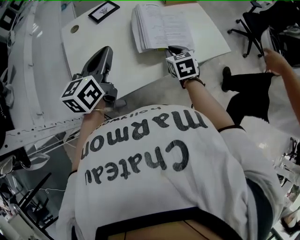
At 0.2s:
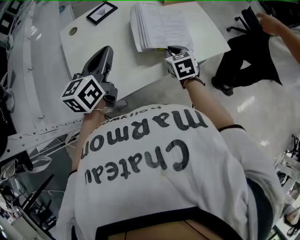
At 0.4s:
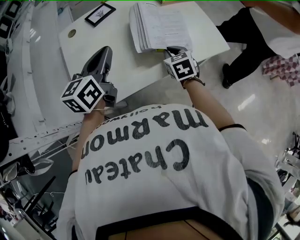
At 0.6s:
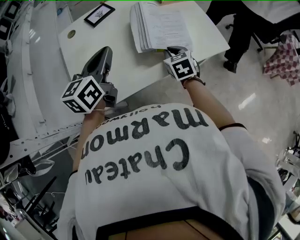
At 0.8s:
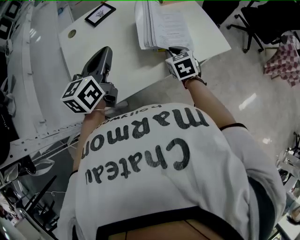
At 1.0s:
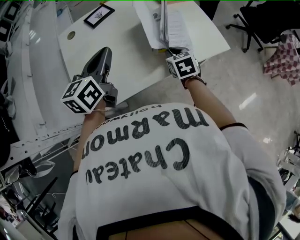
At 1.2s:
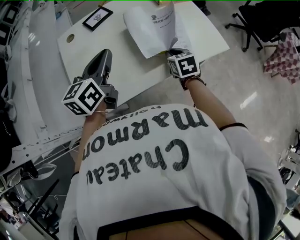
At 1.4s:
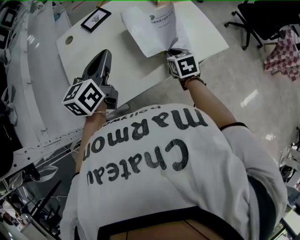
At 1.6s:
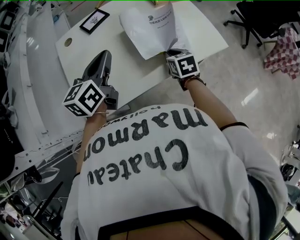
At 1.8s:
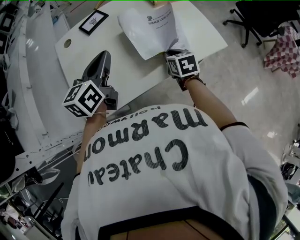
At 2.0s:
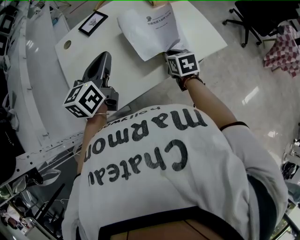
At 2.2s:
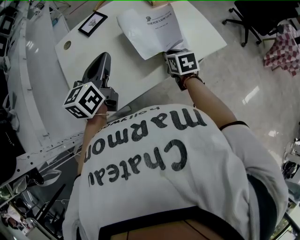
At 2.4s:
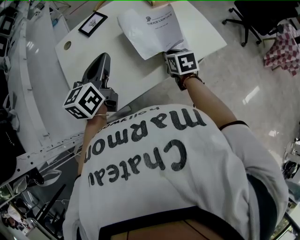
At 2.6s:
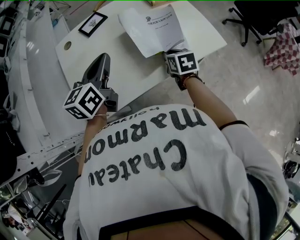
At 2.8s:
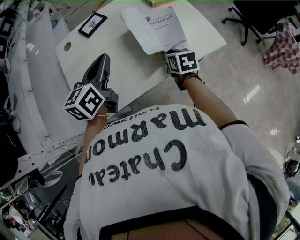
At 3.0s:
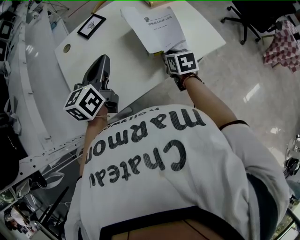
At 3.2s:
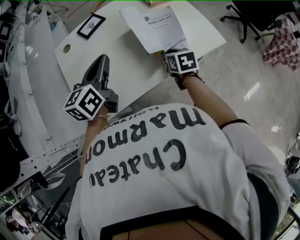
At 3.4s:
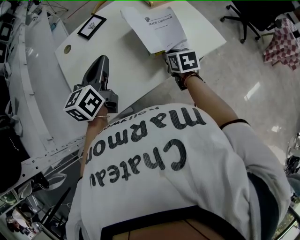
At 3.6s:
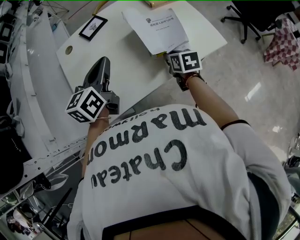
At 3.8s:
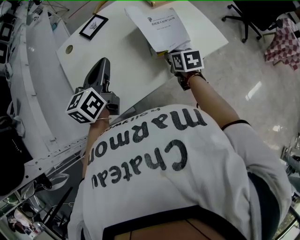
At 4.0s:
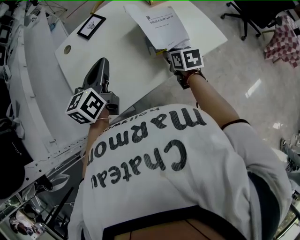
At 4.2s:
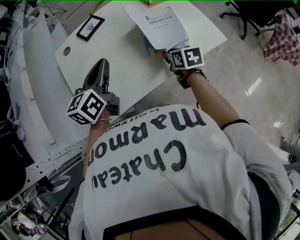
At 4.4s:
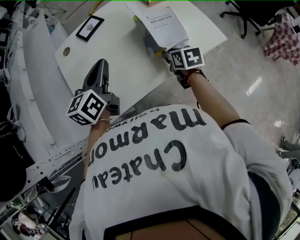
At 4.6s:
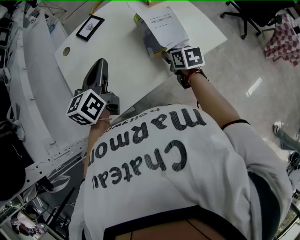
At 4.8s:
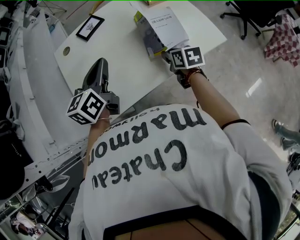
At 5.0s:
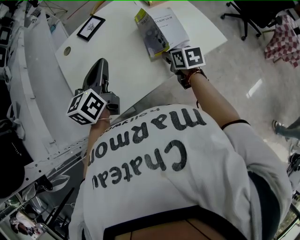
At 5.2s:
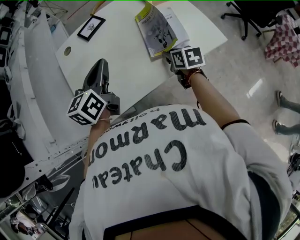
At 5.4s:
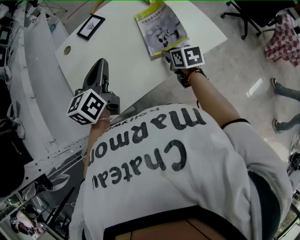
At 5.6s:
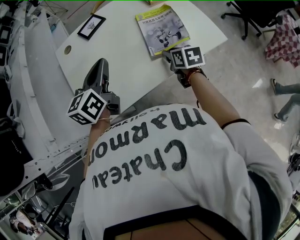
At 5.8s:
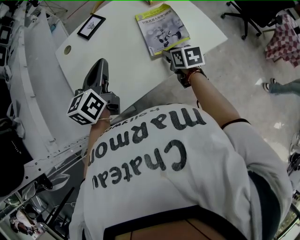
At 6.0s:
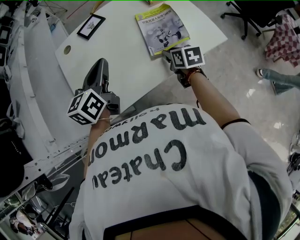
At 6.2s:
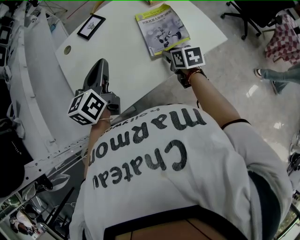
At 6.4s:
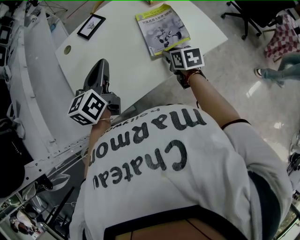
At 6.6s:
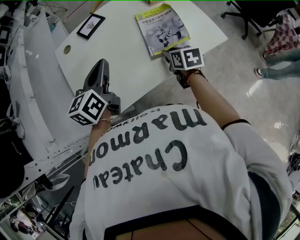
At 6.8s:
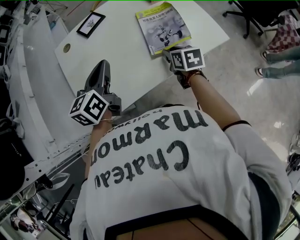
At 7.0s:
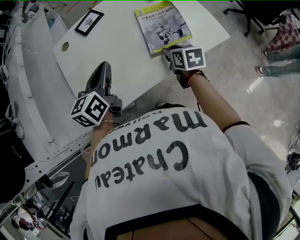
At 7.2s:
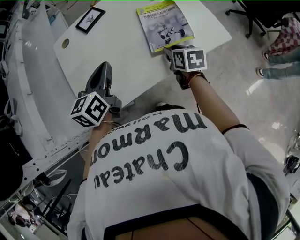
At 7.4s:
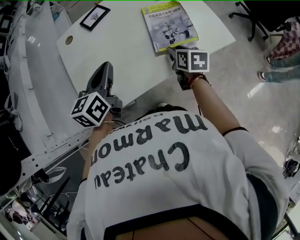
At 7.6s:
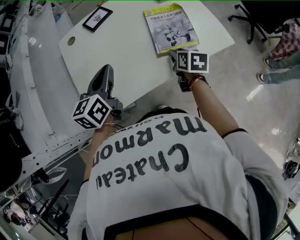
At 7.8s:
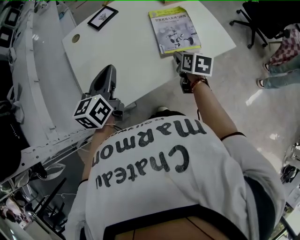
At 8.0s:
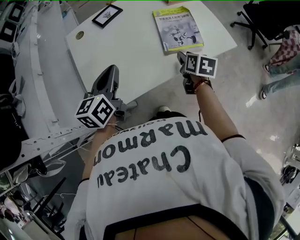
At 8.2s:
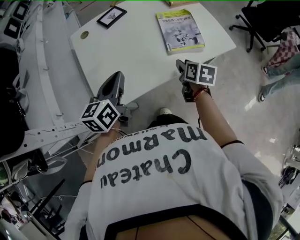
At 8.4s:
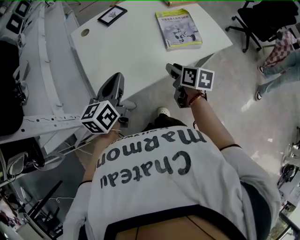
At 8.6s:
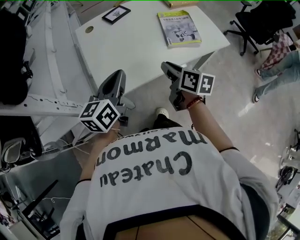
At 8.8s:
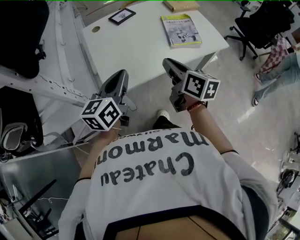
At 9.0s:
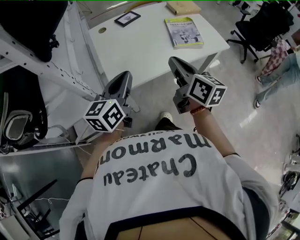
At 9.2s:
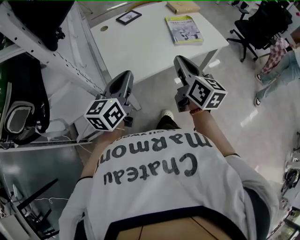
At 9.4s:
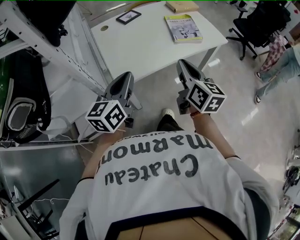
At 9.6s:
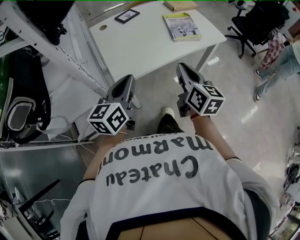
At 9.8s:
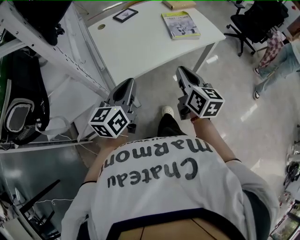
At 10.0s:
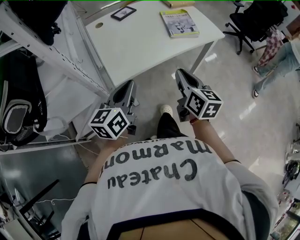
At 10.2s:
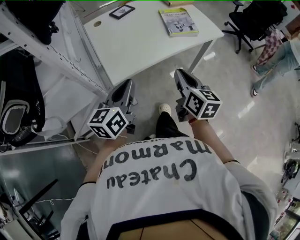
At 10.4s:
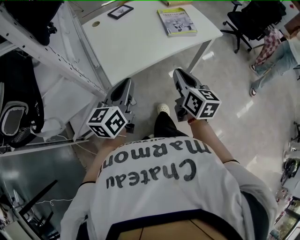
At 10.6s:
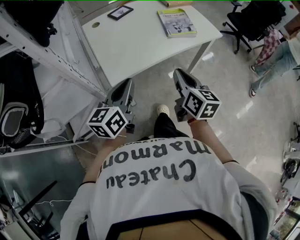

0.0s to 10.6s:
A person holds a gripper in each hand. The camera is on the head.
0.0s to 1.6s: The grippers stay close to where they were, moving slightly.
1.6s to 4.6s: The grippers move only a little.
4.6s to 6.0s: Neither gripper changes place.
6.0s to 7.6s: There are only small adjustments of the grippers.
7.6s to 9.0s: The left gripper moves backward, some 20 cm, while the right gripper is displaced backward, upward and to the left by about 35 cm, tilts its fingers some 40 degrees upward, and closes up.
9.0s to 10.6s: The right gripper travels backward and downward by approximately 10 cm, while the left gripper travels backward by about 5 cm.

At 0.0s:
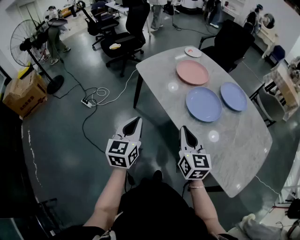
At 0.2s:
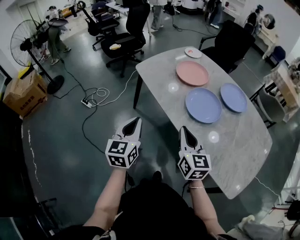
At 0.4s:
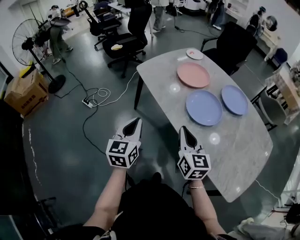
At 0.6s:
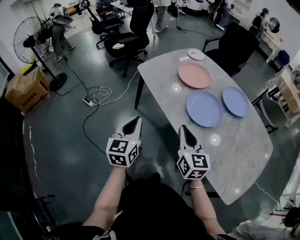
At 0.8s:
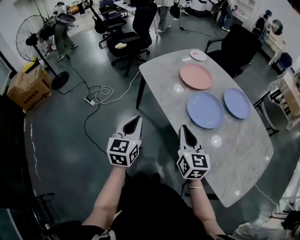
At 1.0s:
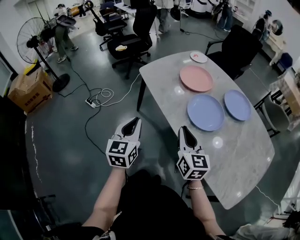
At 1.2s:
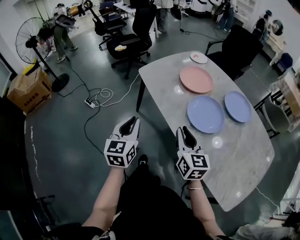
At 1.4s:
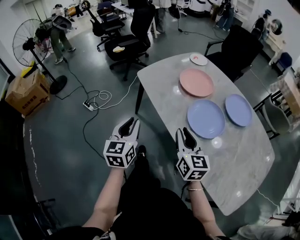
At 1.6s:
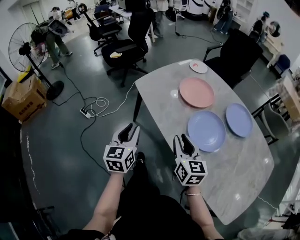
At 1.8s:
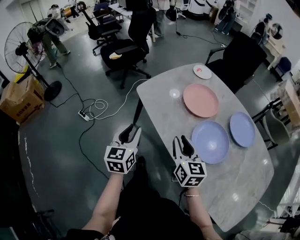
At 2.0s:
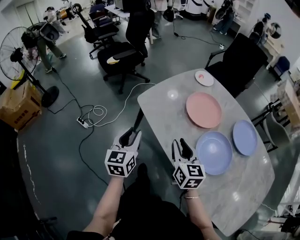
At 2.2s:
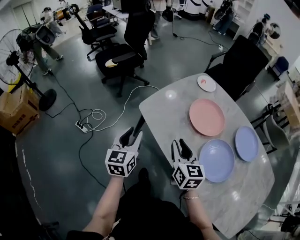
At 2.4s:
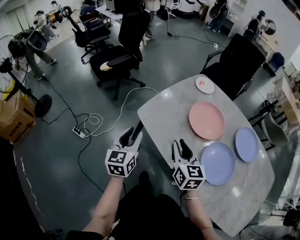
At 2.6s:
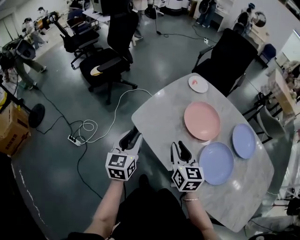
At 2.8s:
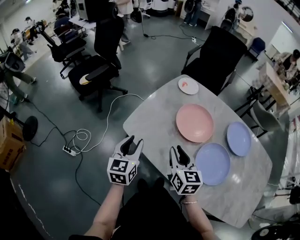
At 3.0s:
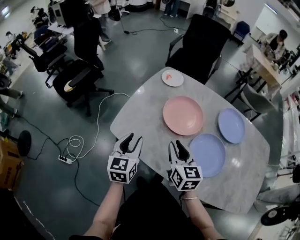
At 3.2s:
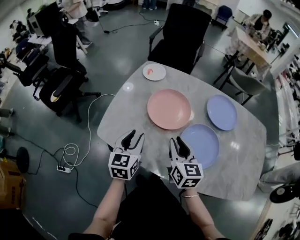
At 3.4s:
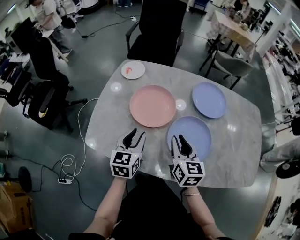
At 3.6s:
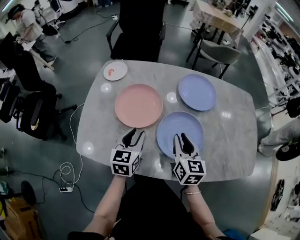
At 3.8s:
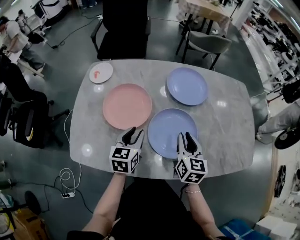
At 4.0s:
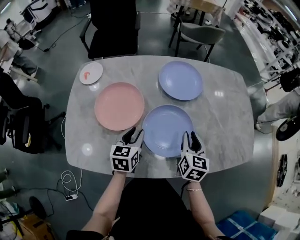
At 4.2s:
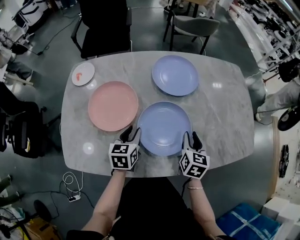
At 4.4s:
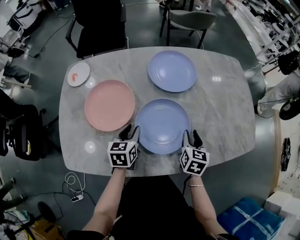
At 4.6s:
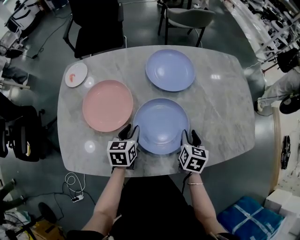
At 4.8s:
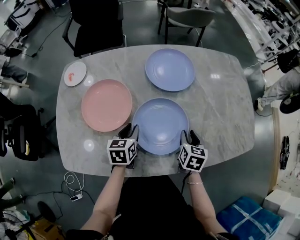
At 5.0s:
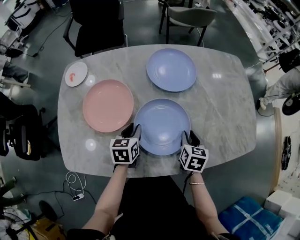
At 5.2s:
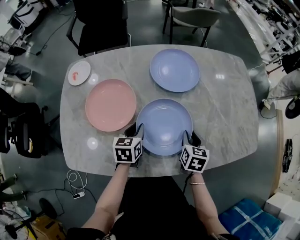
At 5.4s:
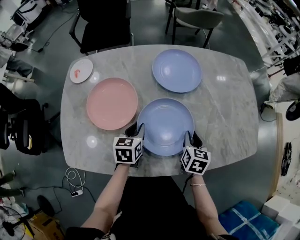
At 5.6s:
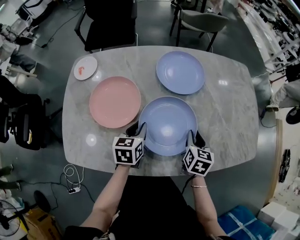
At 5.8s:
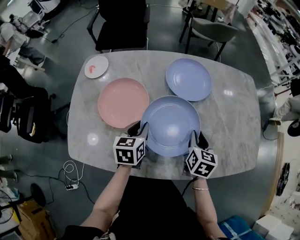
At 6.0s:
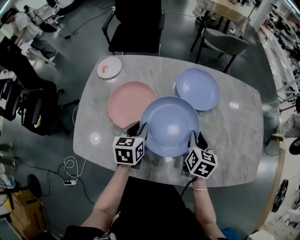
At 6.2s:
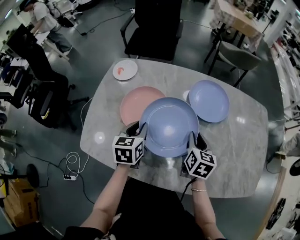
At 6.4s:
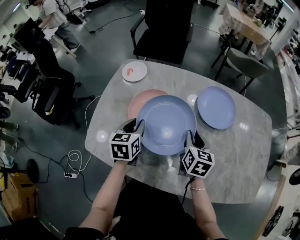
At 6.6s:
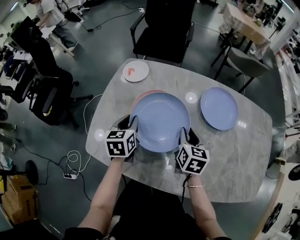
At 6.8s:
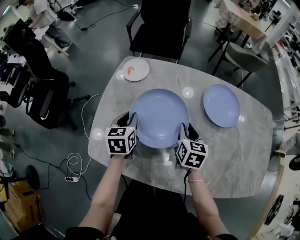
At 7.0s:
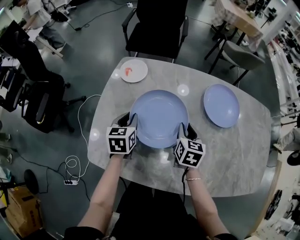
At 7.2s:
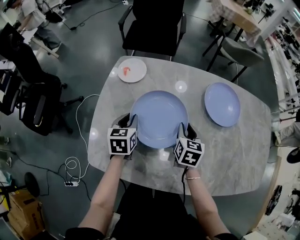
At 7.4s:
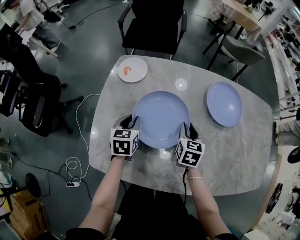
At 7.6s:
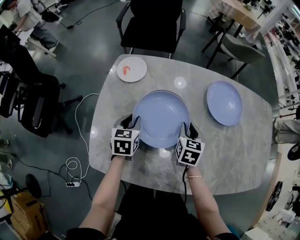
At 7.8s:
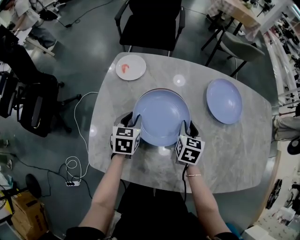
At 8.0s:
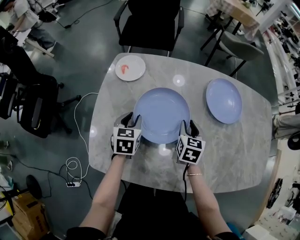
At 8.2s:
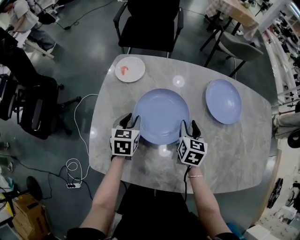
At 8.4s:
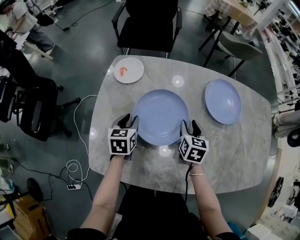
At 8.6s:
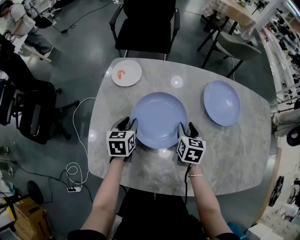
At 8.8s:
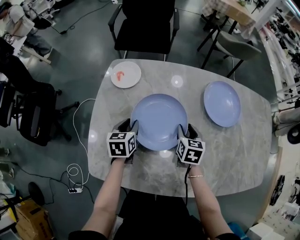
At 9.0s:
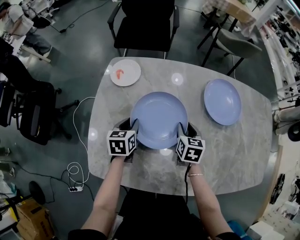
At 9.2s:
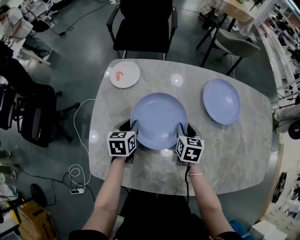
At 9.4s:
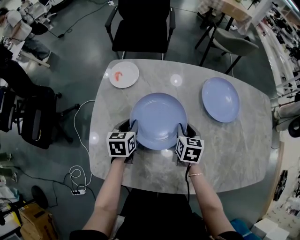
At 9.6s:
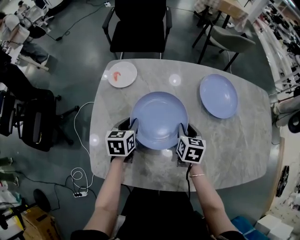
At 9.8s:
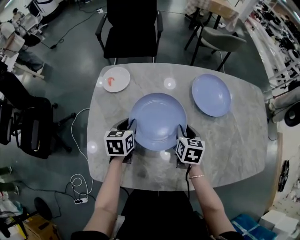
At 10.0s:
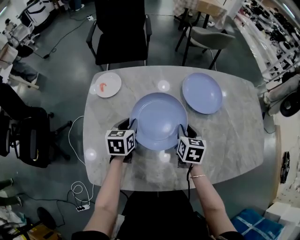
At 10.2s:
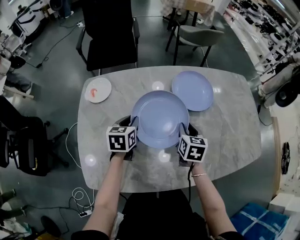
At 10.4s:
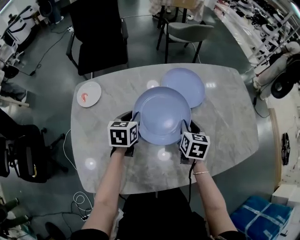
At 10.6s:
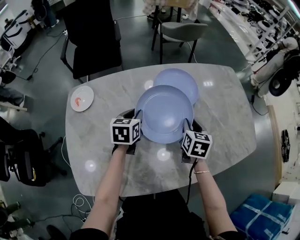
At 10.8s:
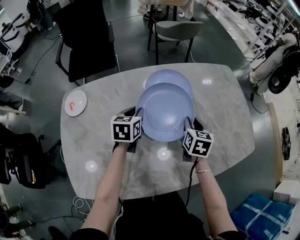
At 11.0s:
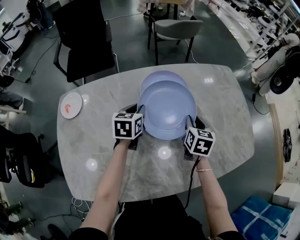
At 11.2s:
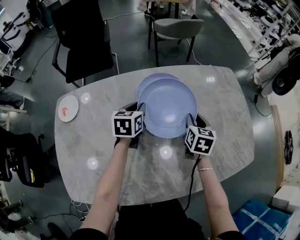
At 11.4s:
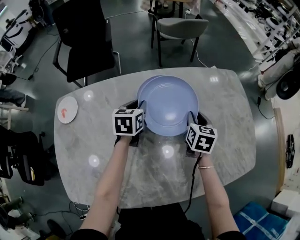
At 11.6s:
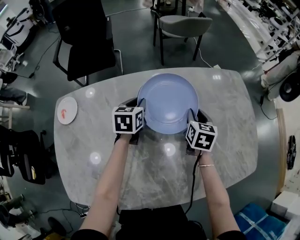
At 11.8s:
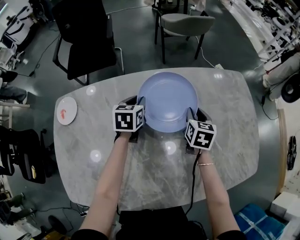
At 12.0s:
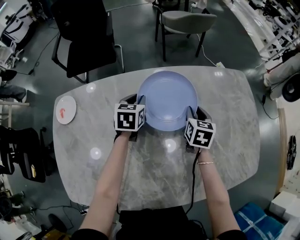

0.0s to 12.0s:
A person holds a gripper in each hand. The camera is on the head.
0.0s to 1.6s: Both grippers move forward, roughly 15 cm. The left gripper opens.
1.6s to 3.0s: Both grippers travel together forward, approximately 25 cm. The right gripper changes its angle by some 20 degrees. The left gripper rotates some 30 degrees.
3.0s to 4.4s: The left gripper moves roughly 30 cm, and turns by roughly 40 degrees. The right gripper changes place by some 35 cm, and rotates roughly 60 degrees.
4.4s to 6.0s: The right gripper moves to the left and forward, about 10 cm. Meanwhile the left gripper is displaced upward by approximately 5 cm.
6.0s to 7.6s: The right gripper goes about 20 cm to the left and forward. Meanwhile the left gripper goes about 20 cm to the left.
7.6s to 9.0s: The grippers move only a little.
9.0s to 10.4s: The left gripper shifts approximately 20 cm to the right, forward and upward, and turns by about 20 degrees, while the right gripper heads to the right and upward, covering roughly 15 cm.
10.4s to 12.0s: The grippers both shift forward and to the right by roughly 20 cm.

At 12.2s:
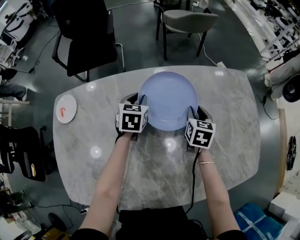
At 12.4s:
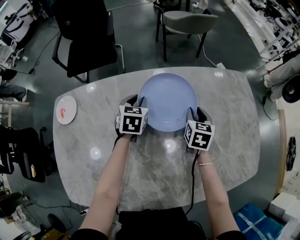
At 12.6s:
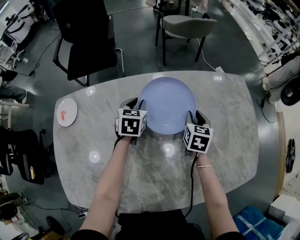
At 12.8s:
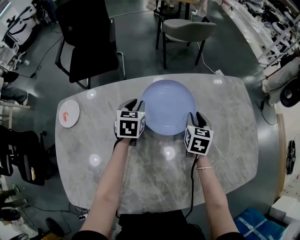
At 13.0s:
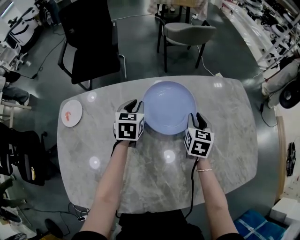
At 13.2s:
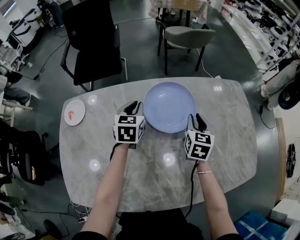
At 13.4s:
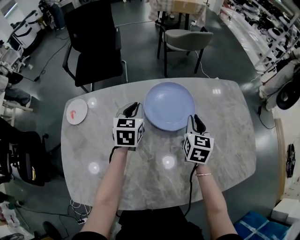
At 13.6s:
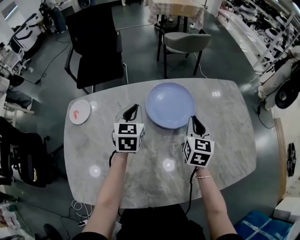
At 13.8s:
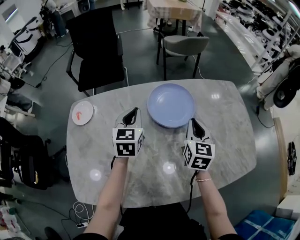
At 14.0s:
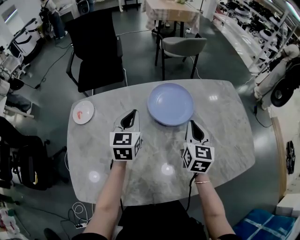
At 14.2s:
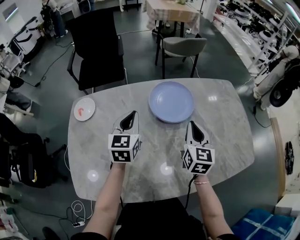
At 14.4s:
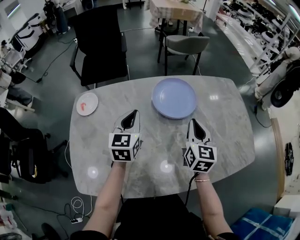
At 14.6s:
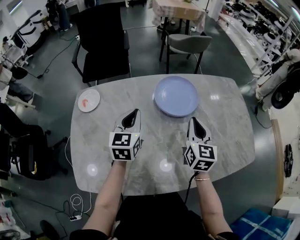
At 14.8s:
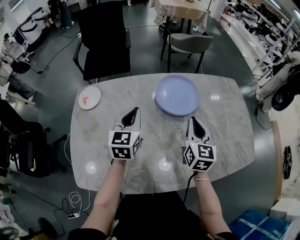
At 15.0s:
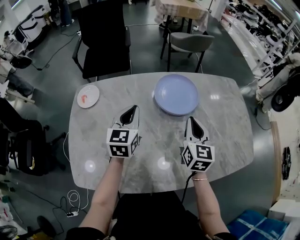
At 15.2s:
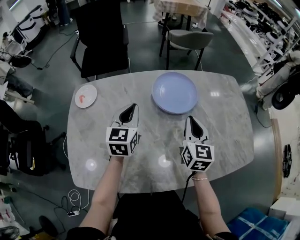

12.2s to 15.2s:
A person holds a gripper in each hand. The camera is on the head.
12.2s to 13.8s: The two grippers go approximately 15 cm upward and backward. The right gripper rotates approximately 20 degrees, and closes up.
13.8s to 15.2s: Both grippers travel together backward, roughly 5 cm.
